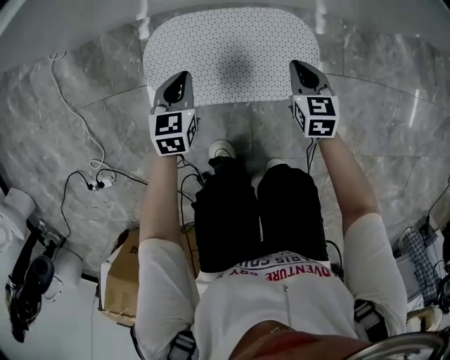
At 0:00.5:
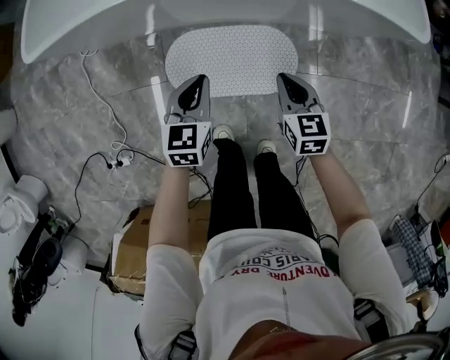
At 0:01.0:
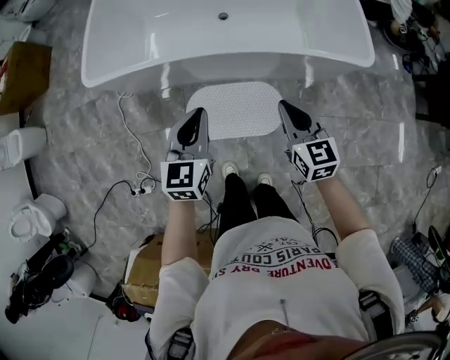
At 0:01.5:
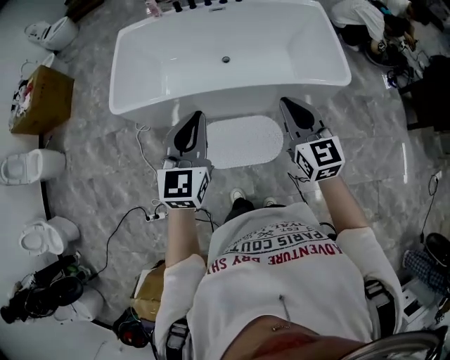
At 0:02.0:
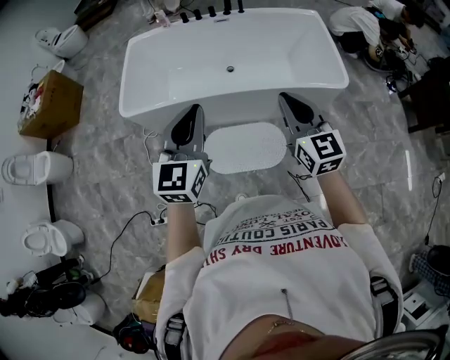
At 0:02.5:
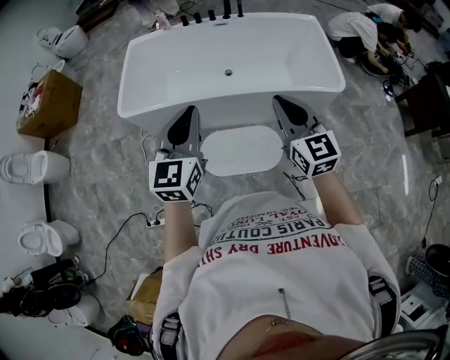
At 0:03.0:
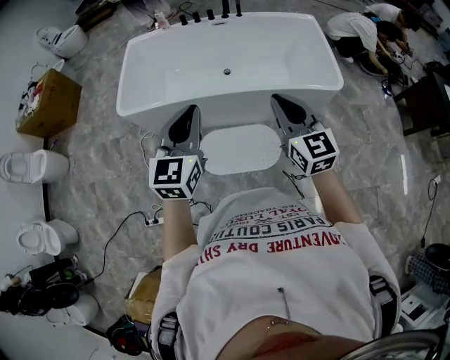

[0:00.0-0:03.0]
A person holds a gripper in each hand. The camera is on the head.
0:00.0 to 0:01.5: The grippers both shift upward by approximately 80 cm. The right gripper tips its fingers upward by roughly 30 degrees, while the left gripper tips its fingers upward by about 30 degrees.
0:01.5 to 0:03.0: Both grippers move backward, about 5 cm.

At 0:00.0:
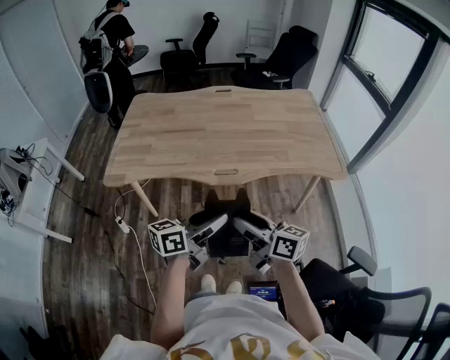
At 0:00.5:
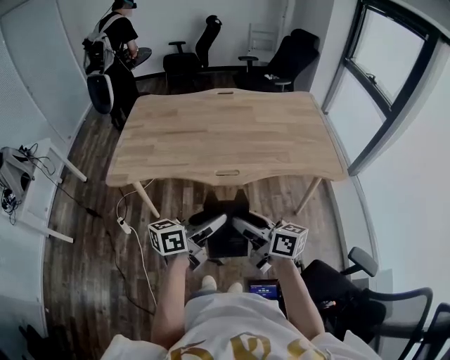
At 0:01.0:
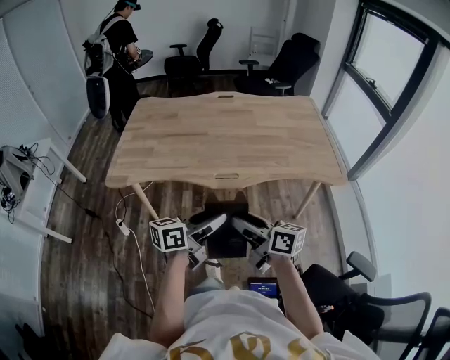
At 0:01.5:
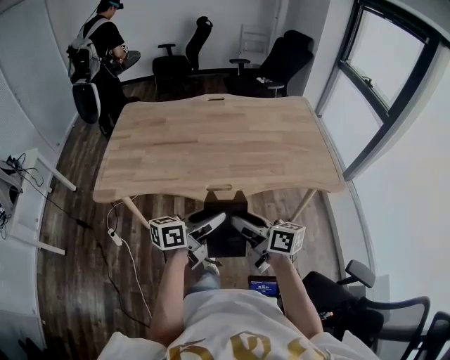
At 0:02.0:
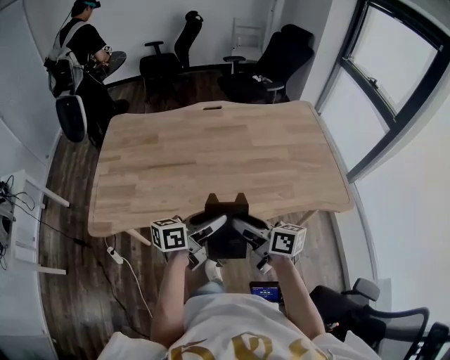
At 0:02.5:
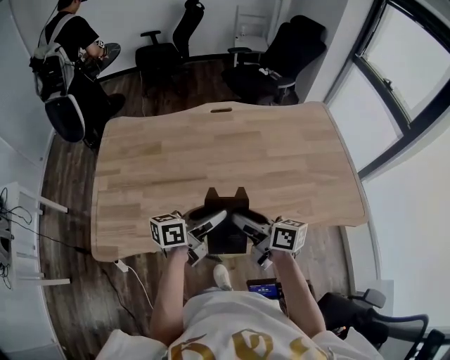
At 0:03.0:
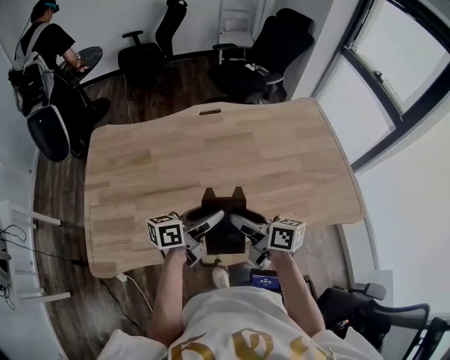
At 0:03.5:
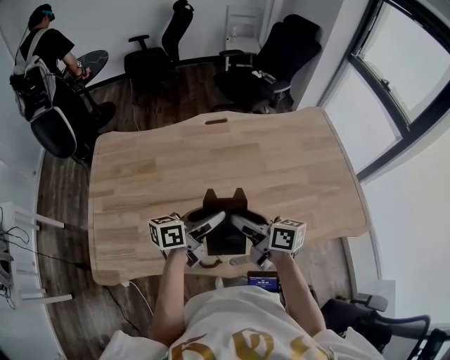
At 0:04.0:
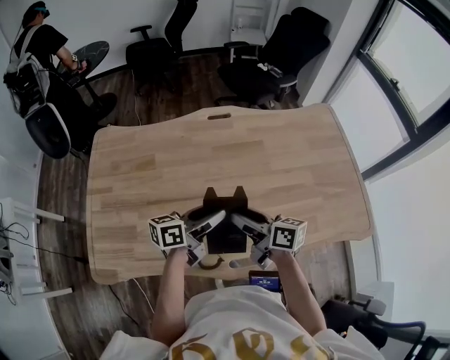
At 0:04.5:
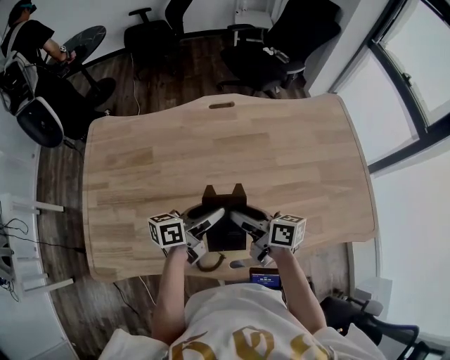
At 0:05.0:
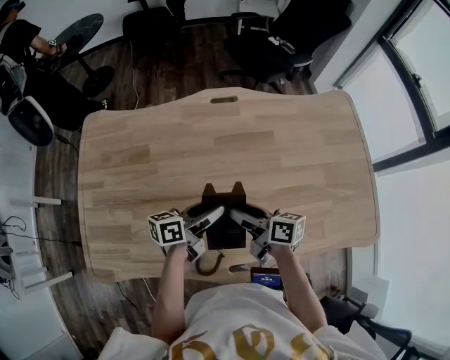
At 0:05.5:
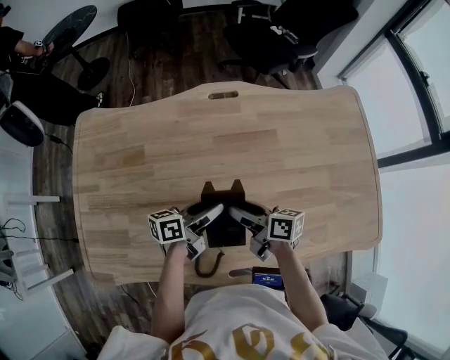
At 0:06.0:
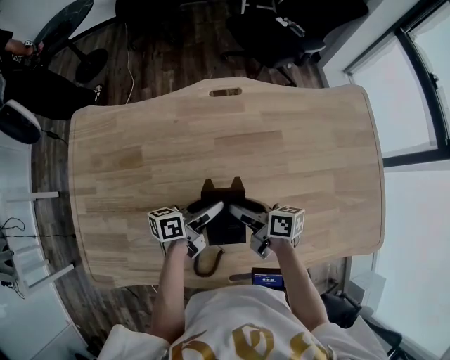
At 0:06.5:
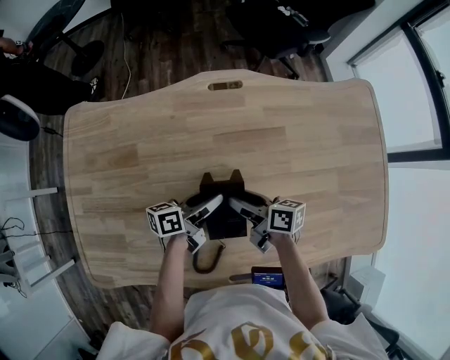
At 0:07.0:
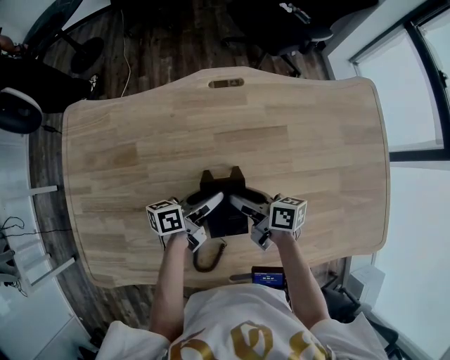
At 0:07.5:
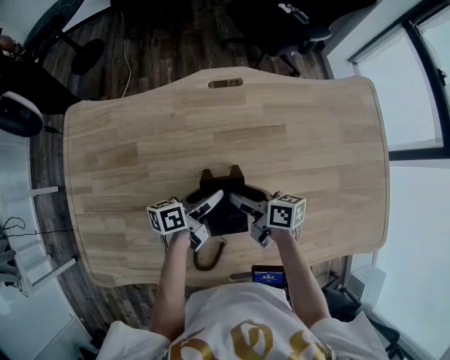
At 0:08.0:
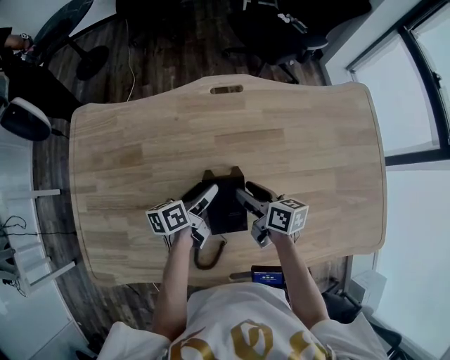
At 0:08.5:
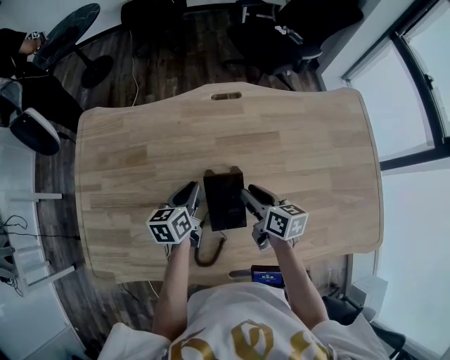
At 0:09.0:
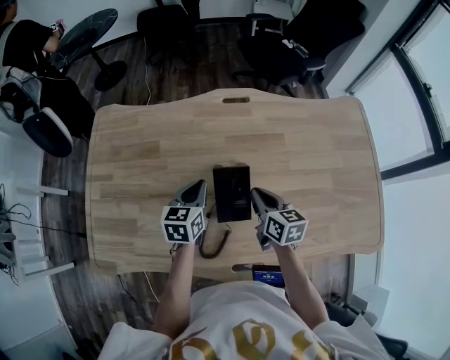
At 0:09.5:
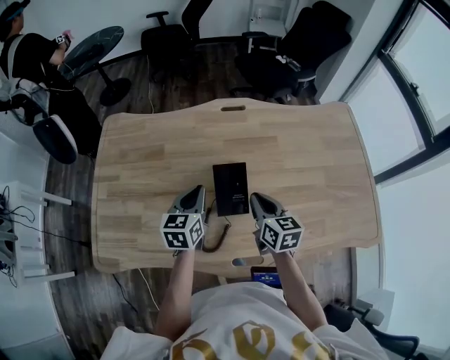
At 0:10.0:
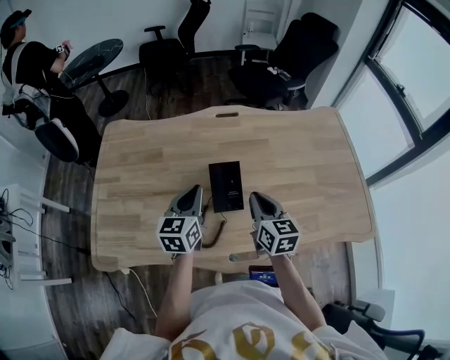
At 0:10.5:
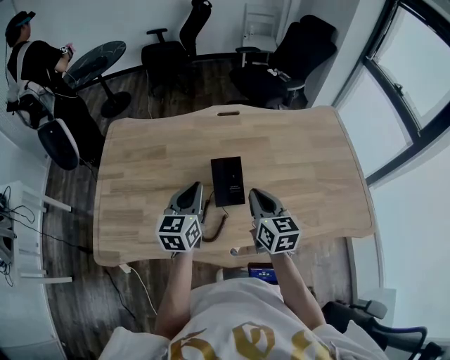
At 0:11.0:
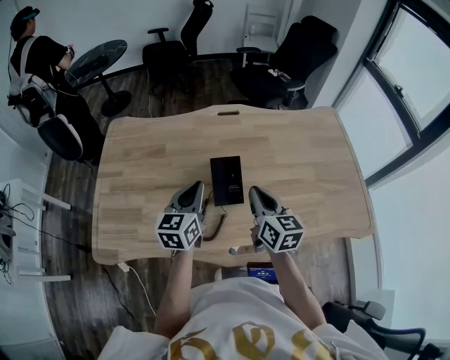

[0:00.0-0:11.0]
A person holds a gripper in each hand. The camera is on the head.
0:00.0 to 0:02.0: The two grippers go about 25 cm forward.
0:02.0 to 0:03.5: Both grippers travel together forward and to the left, approximately 25 cm.
0:03.5 to 0:05.5: Both grippers travel together downward and forward, about 20 cm.
0:05.5 to 0:07.5: The right gripper heads forward, covering approximately 5 cm. The left gripper heads forward and downward, covering approximately 10 cm.
0:07.5 to 0:09.0: The right gripper travels upward and backward by some 10 cm, swivels some 30 degrees, and closes its fingers, while the left gripper travels upward and to the left by approximately 10 cm, turns by roughly 50 degrees, and closes up.
0:09.0 to 0:11.0: The right gripper moves upward and backward, approximately 20 cm; the left gripper moves backward and upward, approximately 15 cm.

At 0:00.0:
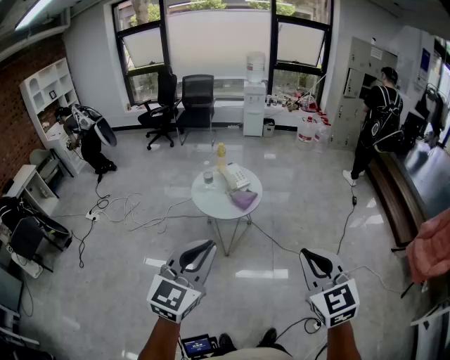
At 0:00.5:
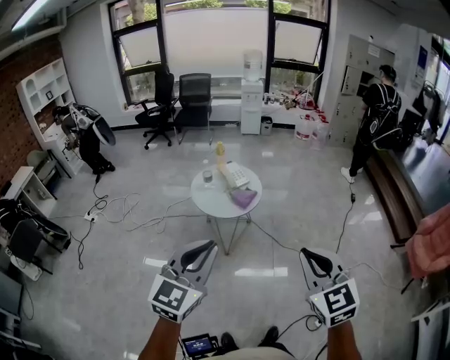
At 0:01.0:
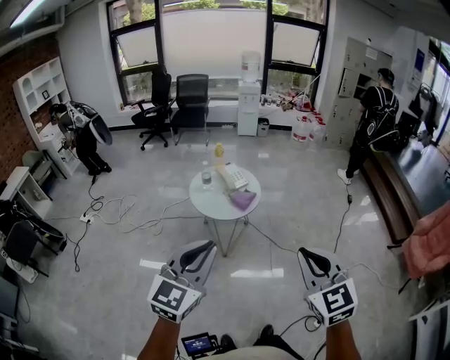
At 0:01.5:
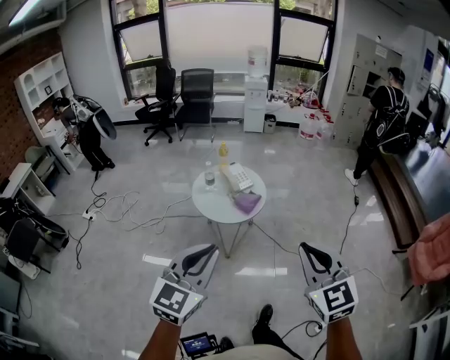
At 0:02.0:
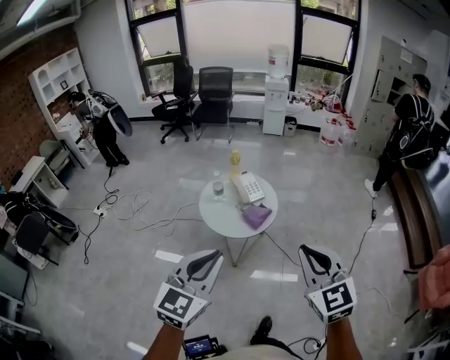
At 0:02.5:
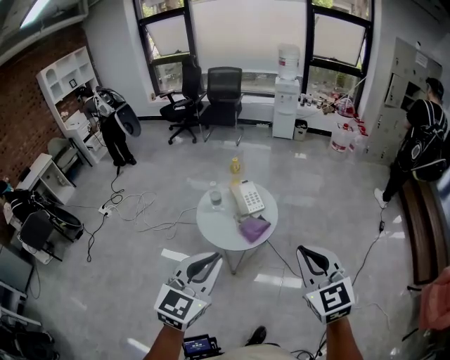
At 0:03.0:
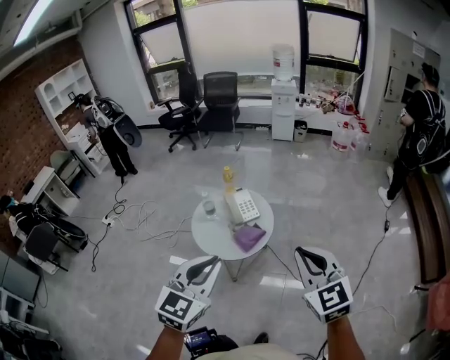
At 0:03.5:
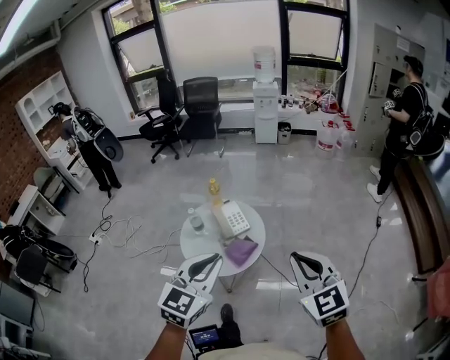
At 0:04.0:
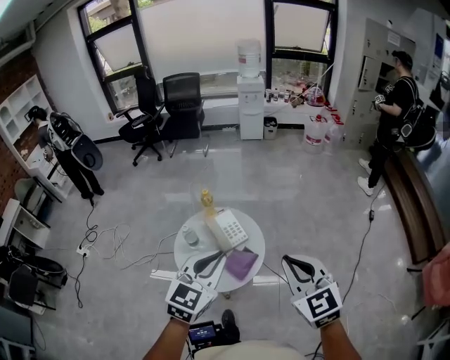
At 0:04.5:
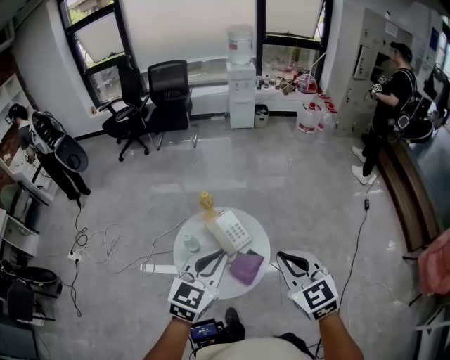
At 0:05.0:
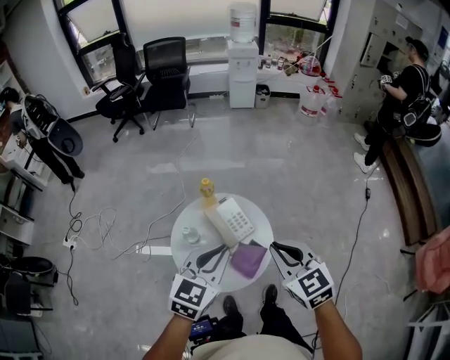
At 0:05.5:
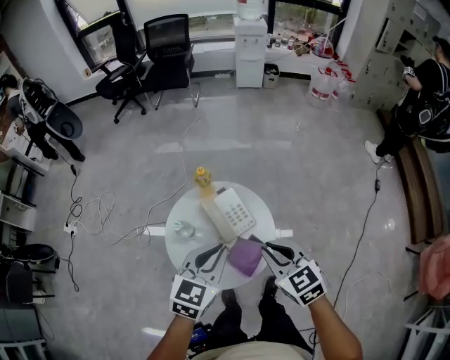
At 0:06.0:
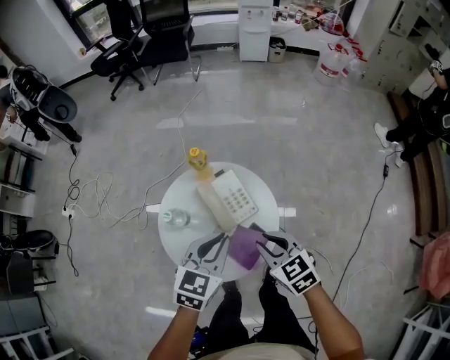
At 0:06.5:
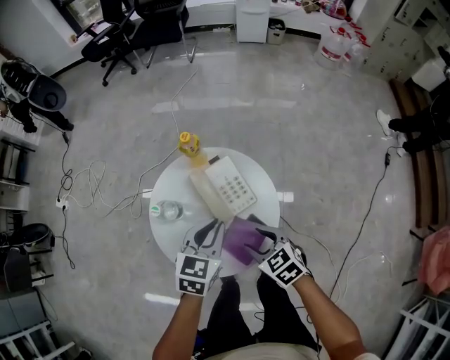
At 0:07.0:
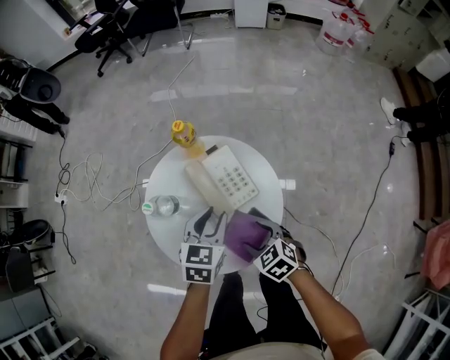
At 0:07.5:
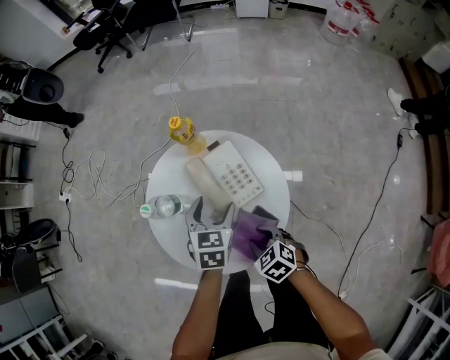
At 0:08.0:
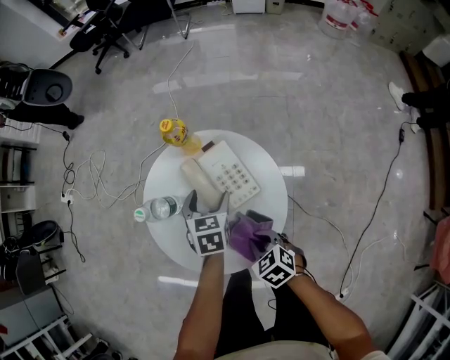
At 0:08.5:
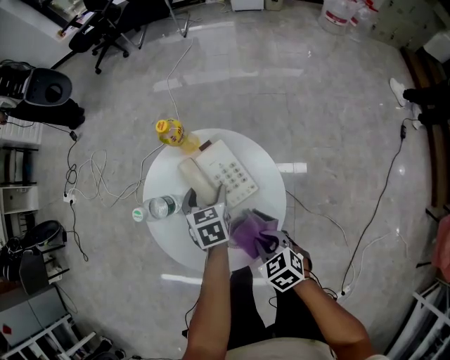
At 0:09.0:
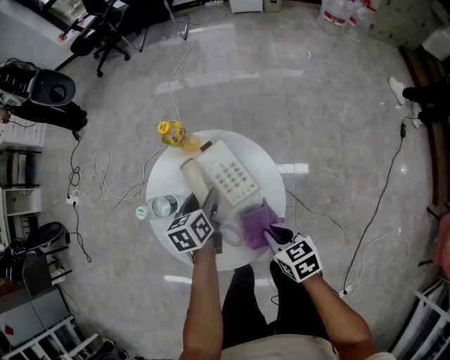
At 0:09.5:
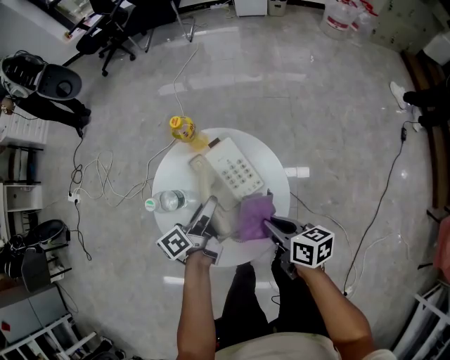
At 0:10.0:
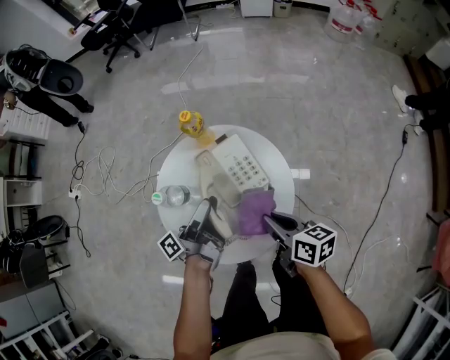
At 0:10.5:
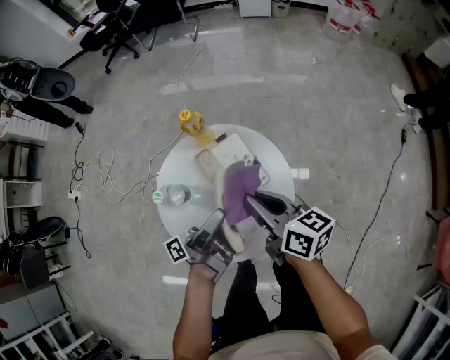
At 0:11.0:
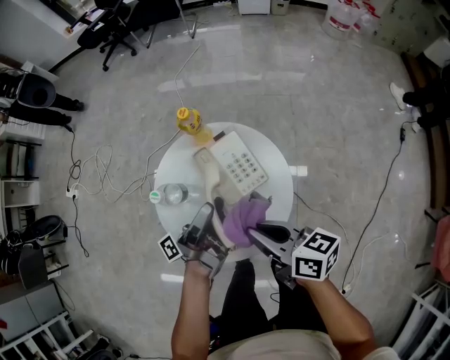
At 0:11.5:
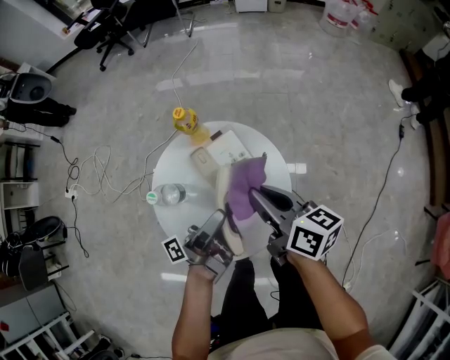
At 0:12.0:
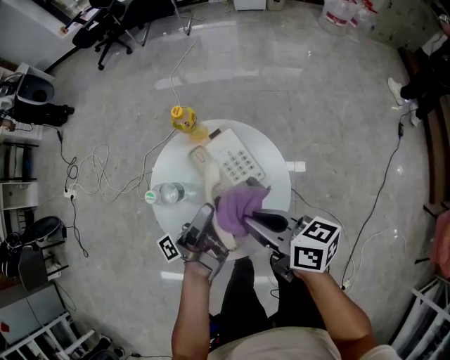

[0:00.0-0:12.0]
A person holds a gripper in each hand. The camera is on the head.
0:00.0 to 0:02.0: The two grippers go some 20 cm forward.
0:02.0 to 0:04.0: The two grippers go some 35 cm forward.
0:04.0 to 0:06.0: Both grippers move downward and forward, some 35 cm. The left gripper swivels roughly 20 degrees; the right gripper swivels about 30 degrees.
0:06.0 to 0:08.0: The right gripper shifts about 20 cm downward, rotates approximately 20 degrees, and opens, then closes again; the left gripper travels downward and forward by roughly 25 cm, rotates approximately 30 degrees, and opens its fingers.
0:08.0 to 0:10.0: Both grippers move upward, roughly 10 cm. The left gripper tilts its fingers roughly 60 degrees upward, and closes its fingers; the right gripper tips its fingers upward by roughly 30 degrees.
0:10.0 to 0:12.0: The left gripper is displaced upward by some 5 cm. The right gripper heads upward, covering roughly 10 cm.
